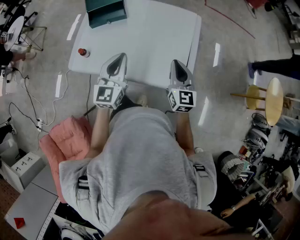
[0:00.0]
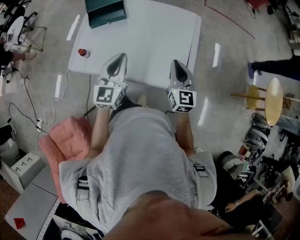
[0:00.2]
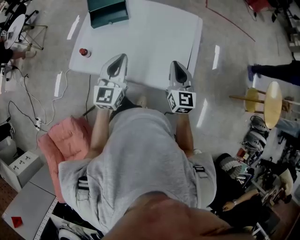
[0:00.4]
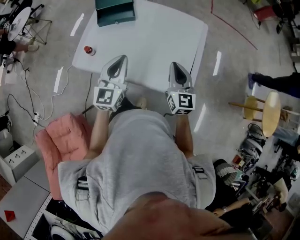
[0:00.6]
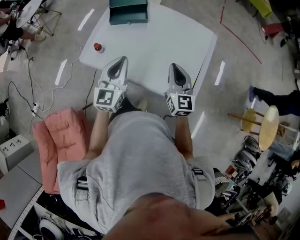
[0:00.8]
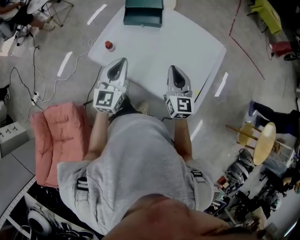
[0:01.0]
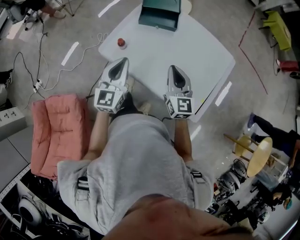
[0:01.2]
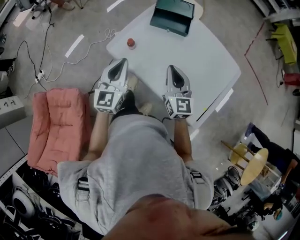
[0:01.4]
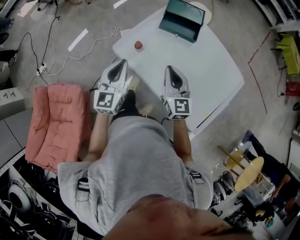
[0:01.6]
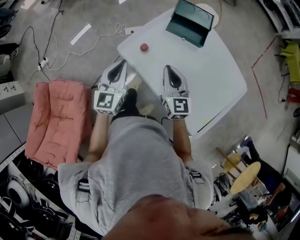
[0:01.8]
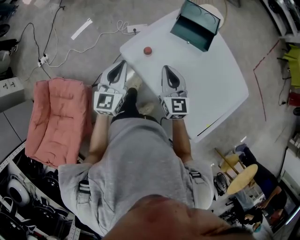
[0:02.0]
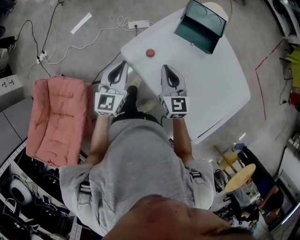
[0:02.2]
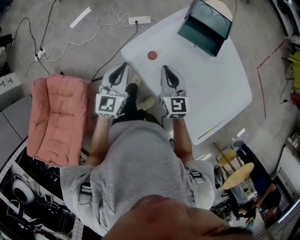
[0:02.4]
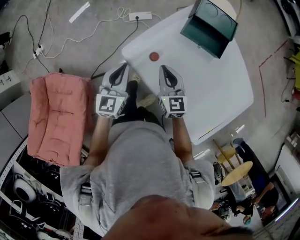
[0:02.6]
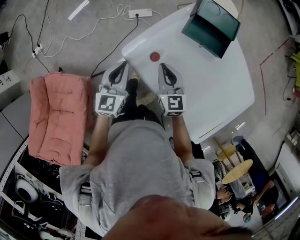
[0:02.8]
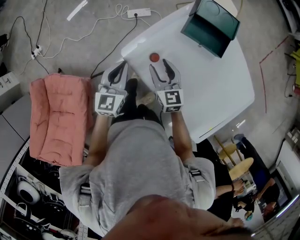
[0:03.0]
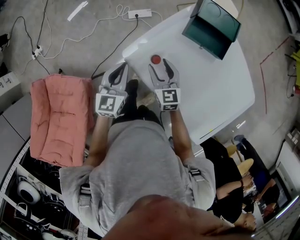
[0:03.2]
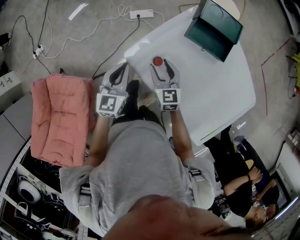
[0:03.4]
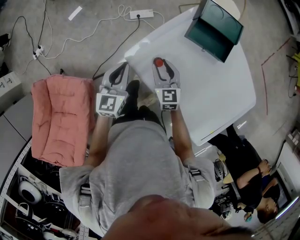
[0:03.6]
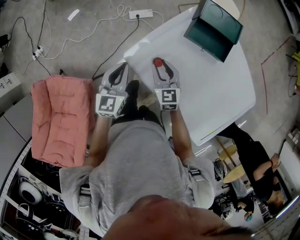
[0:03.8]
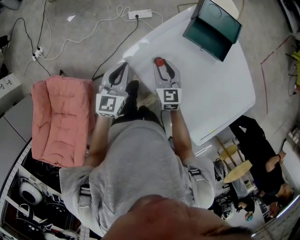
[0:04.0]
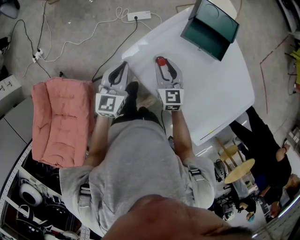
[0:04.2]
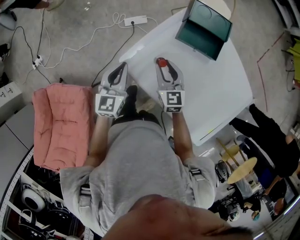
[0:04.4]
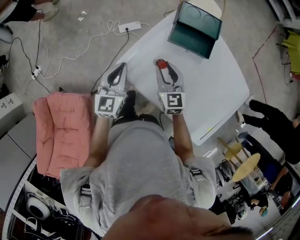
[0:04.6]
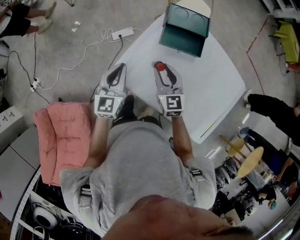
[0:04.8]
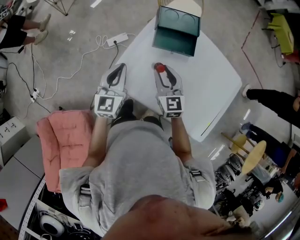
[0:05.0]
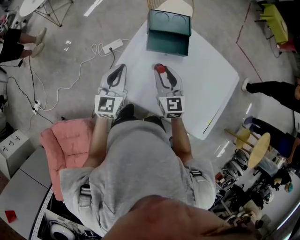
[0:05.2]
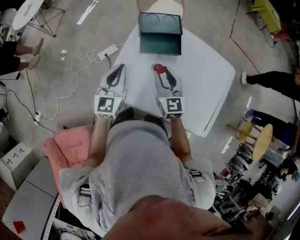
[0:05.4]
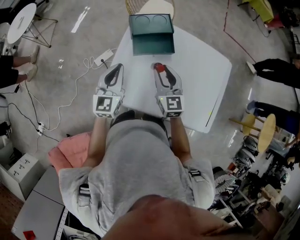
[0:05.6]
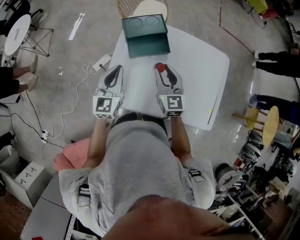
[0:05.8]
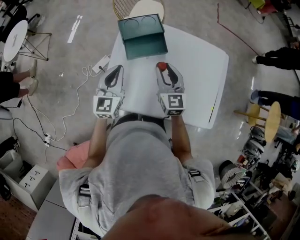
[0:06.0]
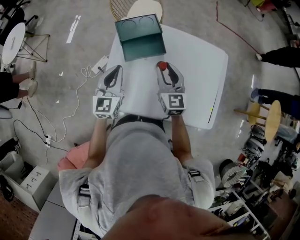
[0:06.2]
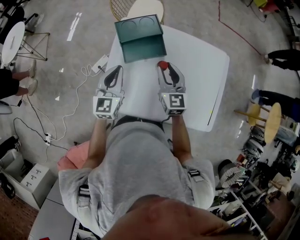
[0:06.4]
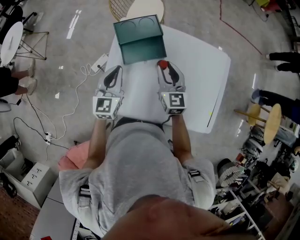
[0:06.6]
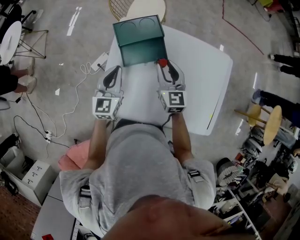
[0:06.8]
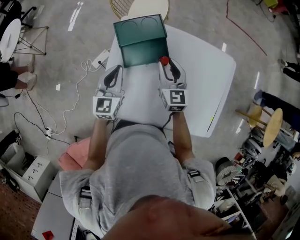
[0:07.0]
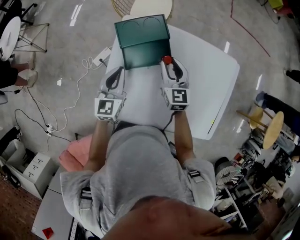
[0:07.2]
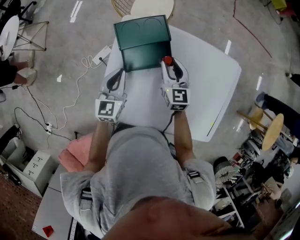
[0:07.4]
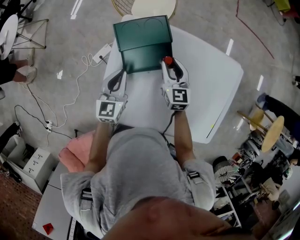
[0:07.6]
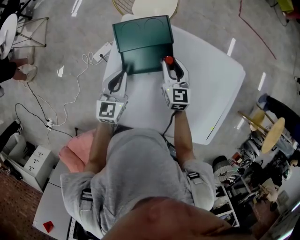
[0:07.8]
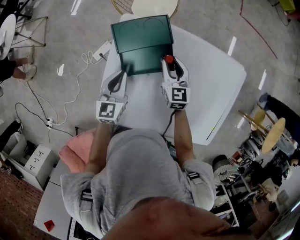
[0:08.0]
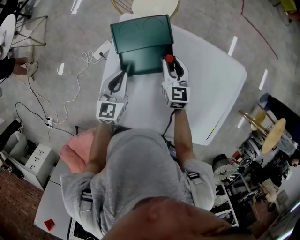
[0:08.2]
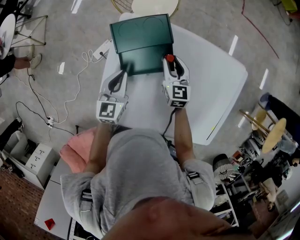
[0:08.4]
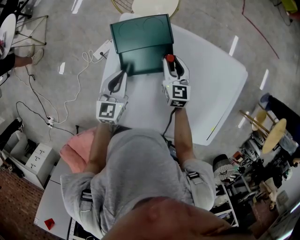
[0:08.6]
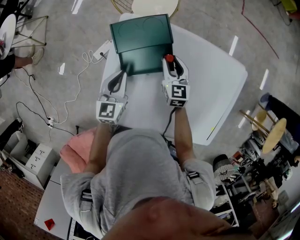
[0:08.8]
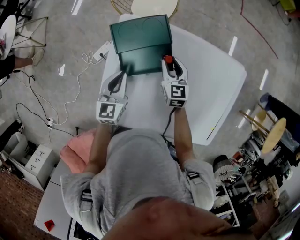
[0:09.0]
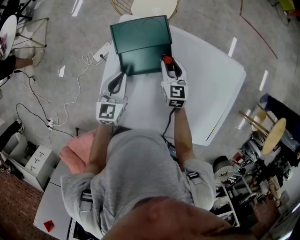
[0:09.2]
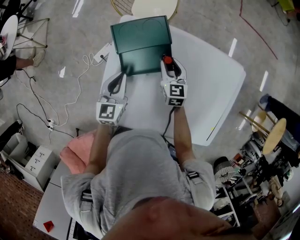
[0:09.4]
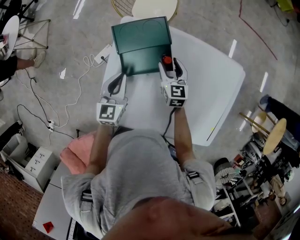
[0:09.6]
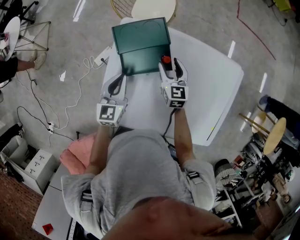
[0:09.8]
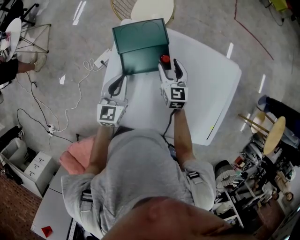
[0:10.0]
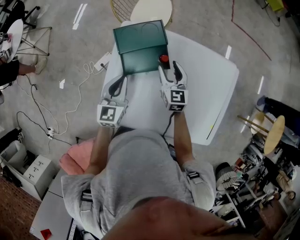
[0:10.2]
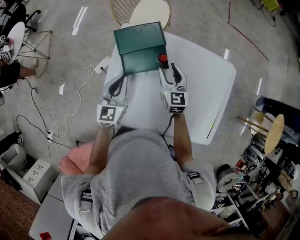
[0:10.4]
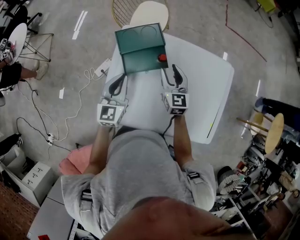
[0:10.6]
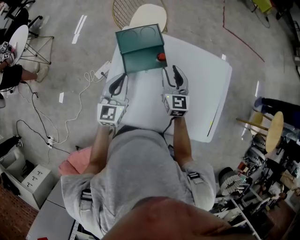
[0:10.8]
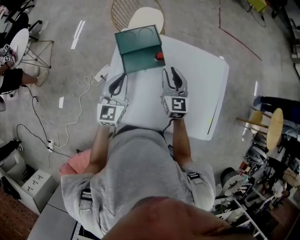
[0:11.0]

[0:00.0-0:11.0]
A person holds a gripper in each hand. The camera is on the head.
0:00.0 to 0:01.6: The right gripper changes place by some 30 cm, and swivels some 40 degrees; the left gripper changes place by roughly 25 cm, and turns by roughly 30 degrees.
0:01.6 to 0:03.2: The two grippers go approximately 25 cm downward, forward and to the left. The right gripper swivels some 20 degrees, and opens up.
0:03.2 to 0:04.8: The left gripper heads upward, forward and to the right, covering roughly 10 cm. Meanwhile the right gripper moves upward and to the right, approximately 10 cm.
0:04.8 to 0:06.2: The right gripper changes place by roughly 15 cm, and turns by approximately 30 degrees. Meanwhile the left gripper moves about 15 cm, and swivels roughly 20 degrees.
0:06.2 to 0:07.8: The grippers both shift forward and downward by approximately 20 cm.
0:07.8 to 0:09.4: The grippers stay close to where they were, moving slightly.
0:09.4 to 0:11.0: Both grippers travel together upward and backward, about 15 cm. The right gripper opens, then closes again.

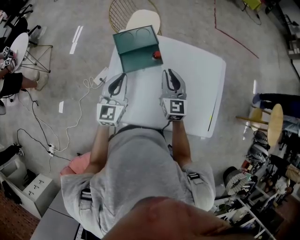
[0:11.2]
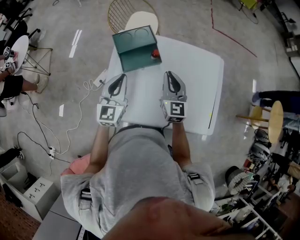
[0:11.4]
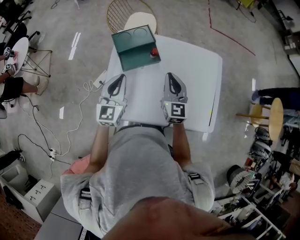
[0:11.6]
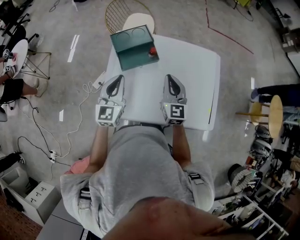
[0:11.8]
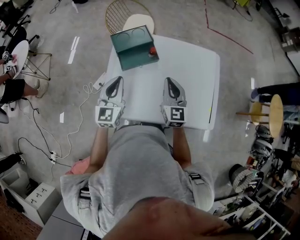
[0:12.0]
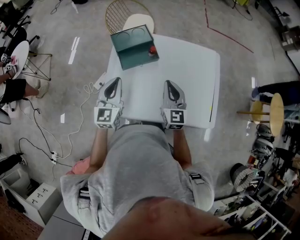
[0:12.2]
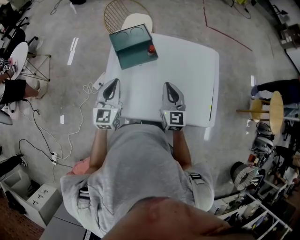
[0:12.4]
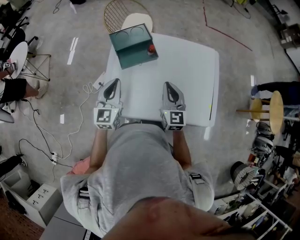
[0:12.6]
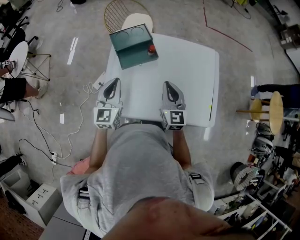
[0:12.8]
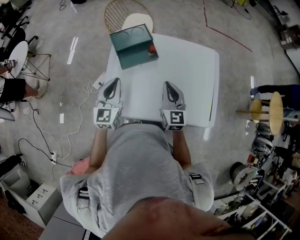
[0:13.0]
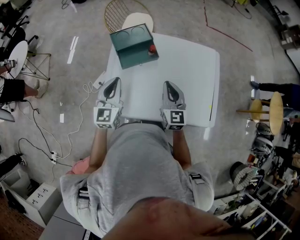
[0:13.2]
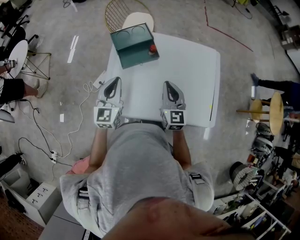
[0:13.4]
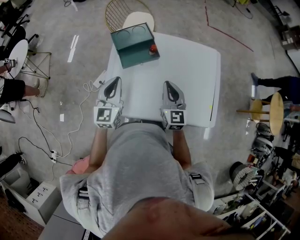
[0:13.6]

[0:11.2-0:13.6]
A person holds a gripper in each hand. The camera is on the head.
0:11.2 to 0:12.4: The right gripper is displaced backward by roughly 10 cm, while the left gripper goes some 5 cm backward.
0:12.4 to 0:13.6: The two grippers keep their place.

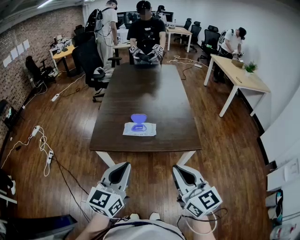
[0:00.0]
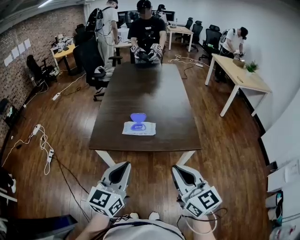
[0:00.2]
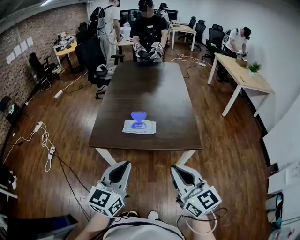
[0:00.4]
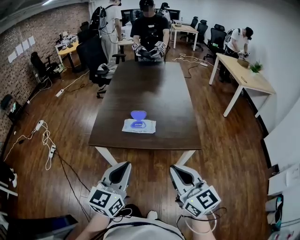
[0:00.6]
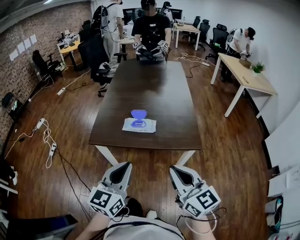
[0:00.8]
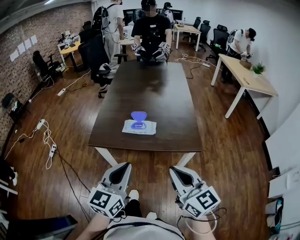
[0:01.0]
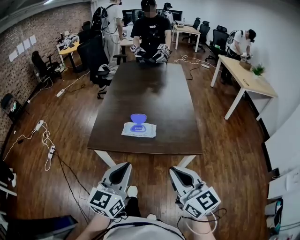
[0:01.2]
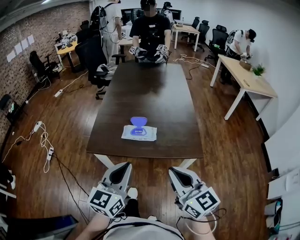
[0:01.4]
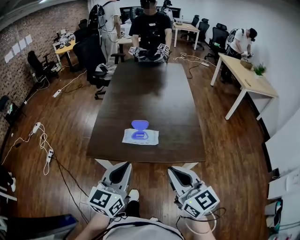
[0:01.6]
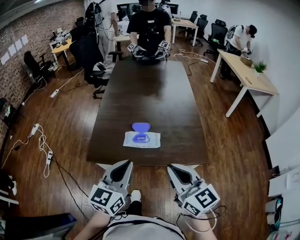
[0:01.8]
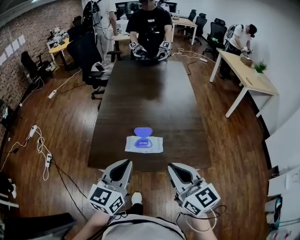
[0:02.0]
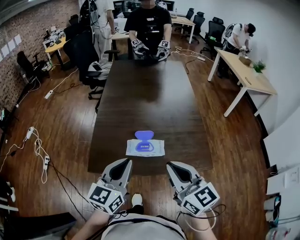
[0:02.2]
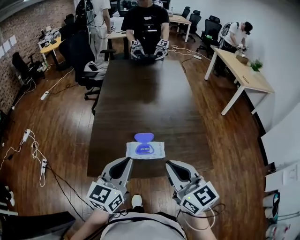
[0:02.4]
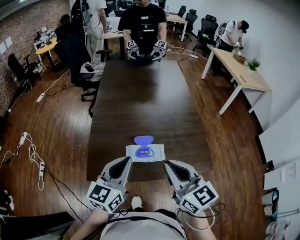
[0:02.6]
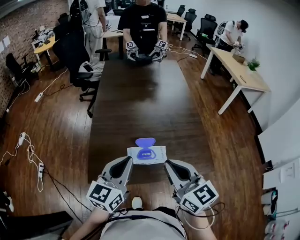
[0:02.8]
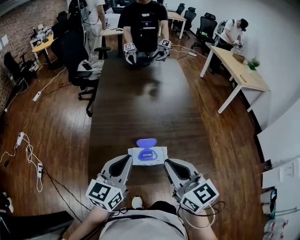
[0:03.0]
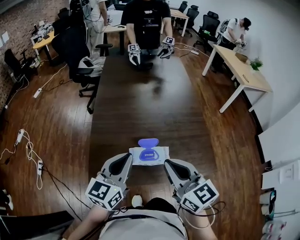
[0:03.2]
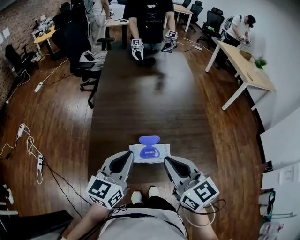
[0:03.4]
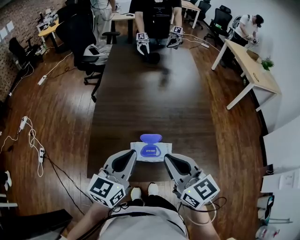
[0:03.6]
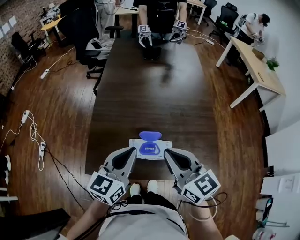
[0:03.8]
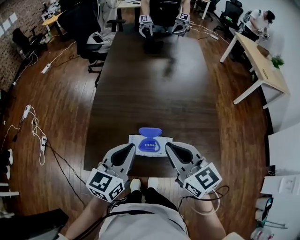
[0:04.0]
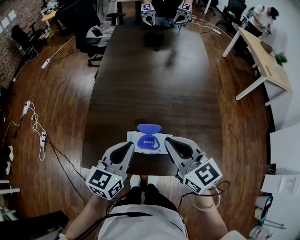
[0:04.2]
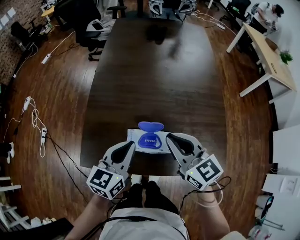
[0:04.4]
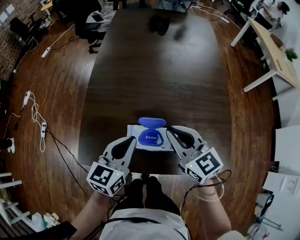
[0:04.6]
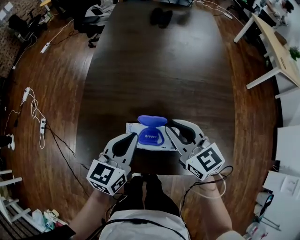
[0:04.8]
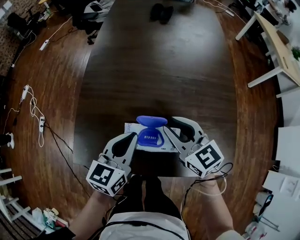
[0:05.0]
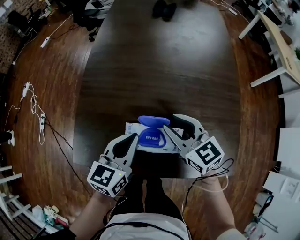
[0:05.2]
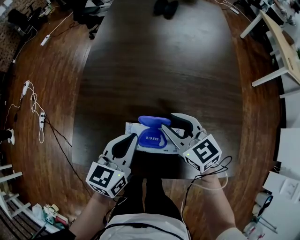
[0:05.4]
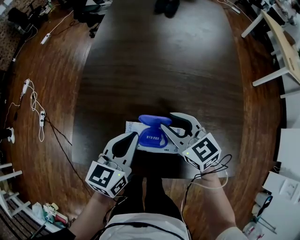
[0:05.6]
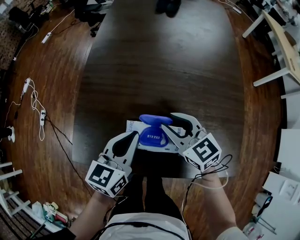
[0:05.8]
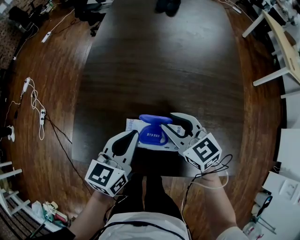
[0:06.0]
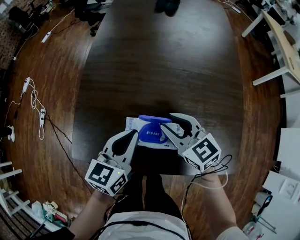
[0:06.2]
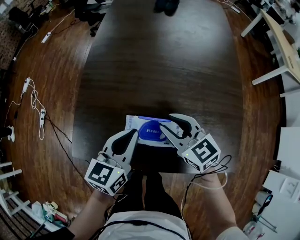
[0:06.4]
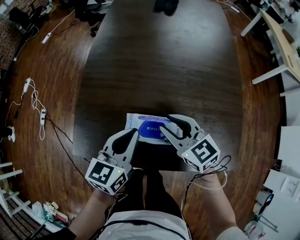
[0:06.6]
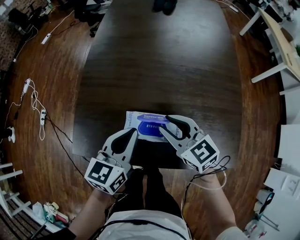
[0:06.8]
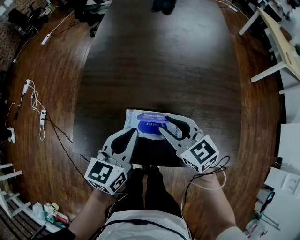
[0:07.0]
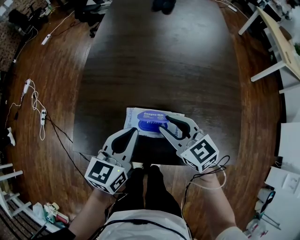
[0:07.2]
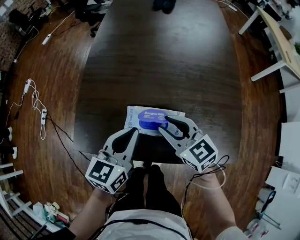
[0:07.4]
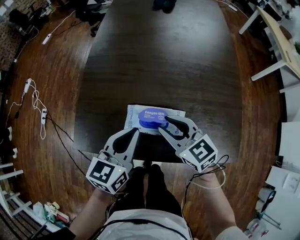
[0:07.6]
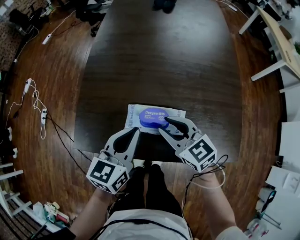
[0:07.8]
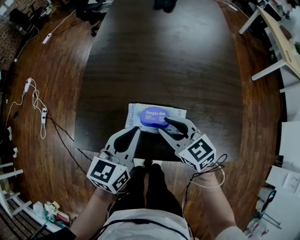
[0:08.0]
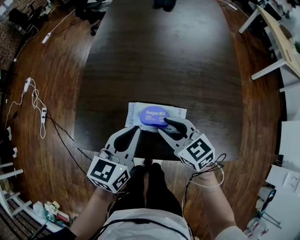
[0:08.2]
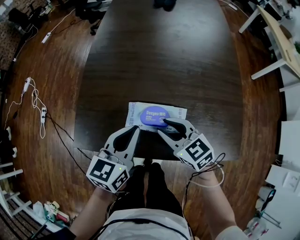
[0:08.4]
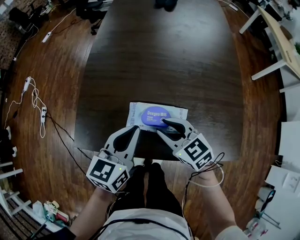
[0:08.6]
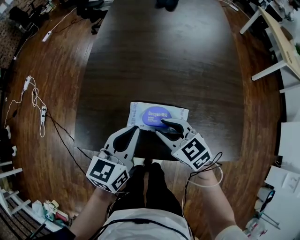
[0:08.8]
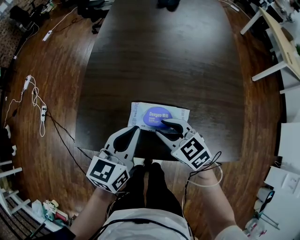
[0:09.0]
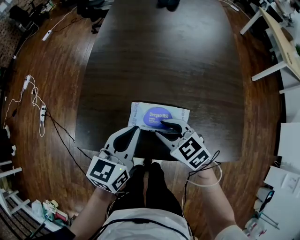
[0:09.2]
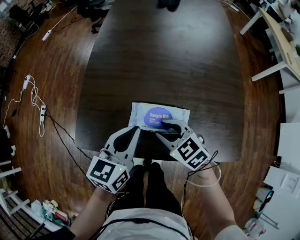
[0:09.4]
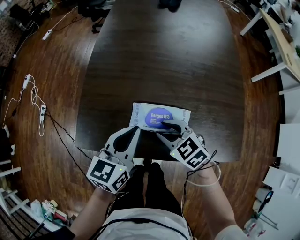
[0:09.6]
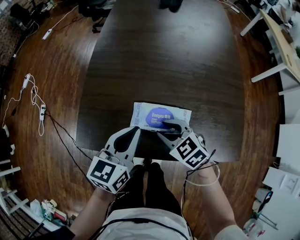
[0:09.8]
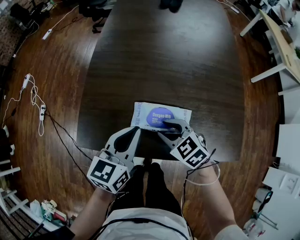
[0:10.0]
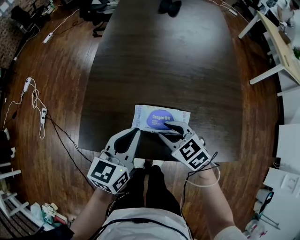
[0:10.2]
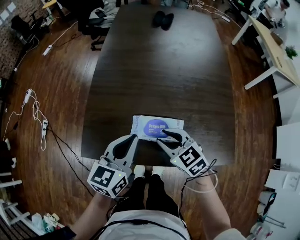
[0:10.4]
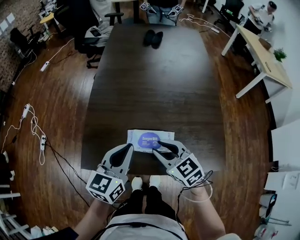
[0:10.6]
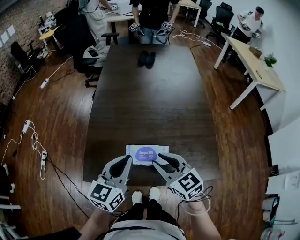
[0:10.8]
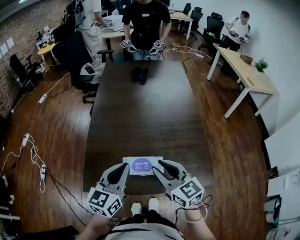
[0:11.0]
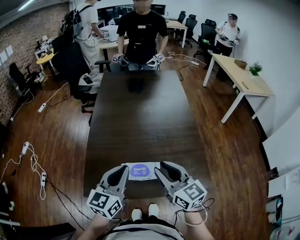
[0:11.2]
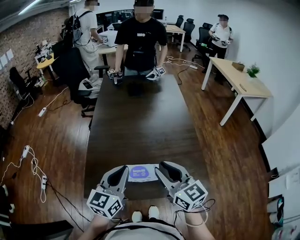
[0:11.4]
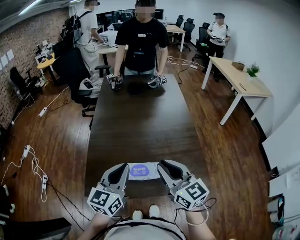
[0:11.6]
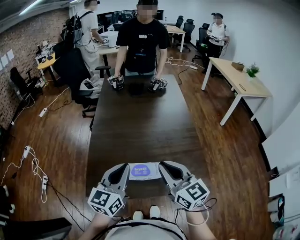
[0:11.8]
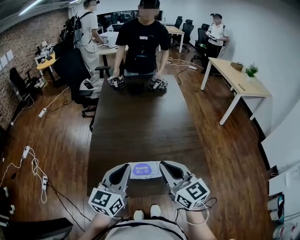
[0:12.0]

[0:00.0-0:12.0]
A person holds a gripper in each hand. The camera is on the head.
0:00.0 to 0:01.6: Both grippers travel together forward, approximately 10 cm.
0:01.6 to 0:03.0: The left gripper heads forward, covering about 20 cm. The right gripper moves forward and to the left, some 25 cm.
0:03.0 to 0:04.4: The right gripper moves forward and downward, some 15 cm. The left gripper is displaced downward and forward by about 15 cm.
0:04.4 to 0:06.0: The right gripper heads downward and forward, covering some 15 cm, and opens up, while the left gripper moves downward, roughly 5 cm.
0:06.0 to 0:07.6: The two grippers go about 5 cm backward.
0:07.6 to 0:09.0: The right gripper changes place by roughly 5 cm.
0:09.0 to 0:10.4: The grippers stay close to where they were, moving slightly.
0:10.4 to 0:12.0: The right gripper goes some 25 cm upward, tilts its fingers approximately 30 degrees upward, and closes up, while the left gripper is displaced upward by some 15 cm.
